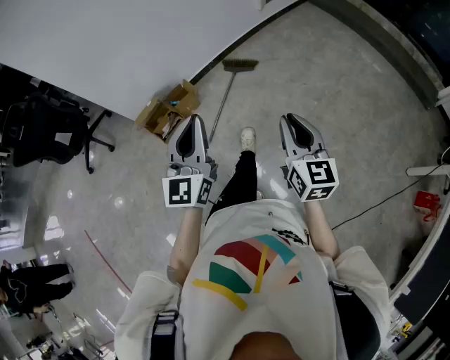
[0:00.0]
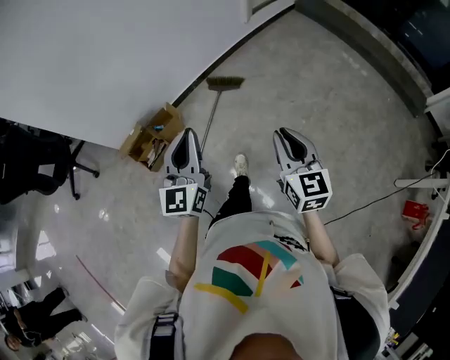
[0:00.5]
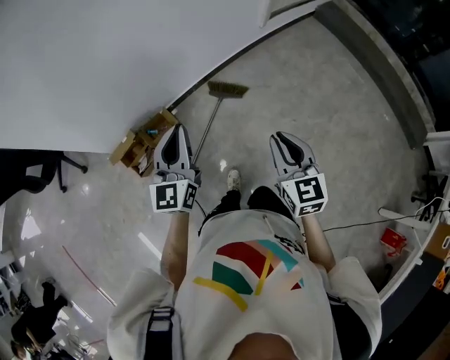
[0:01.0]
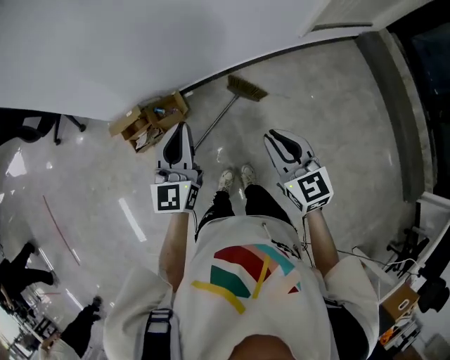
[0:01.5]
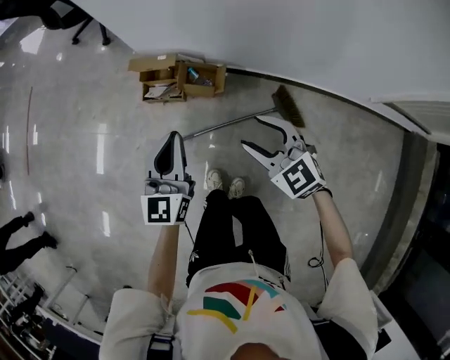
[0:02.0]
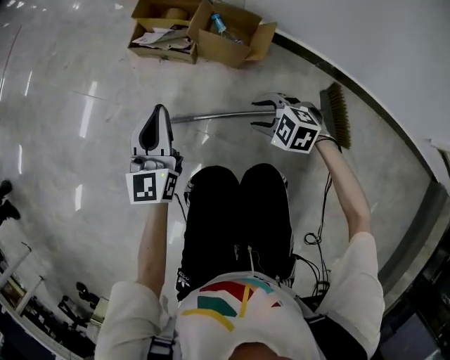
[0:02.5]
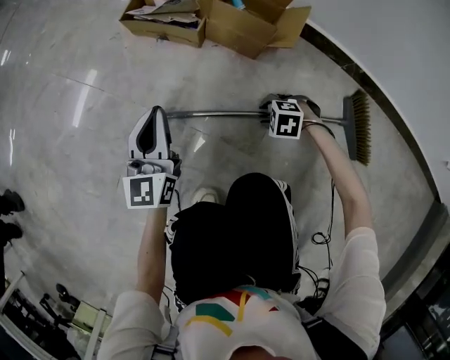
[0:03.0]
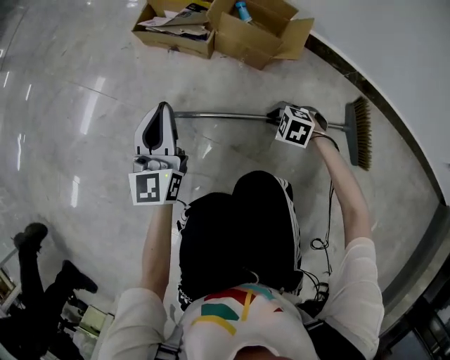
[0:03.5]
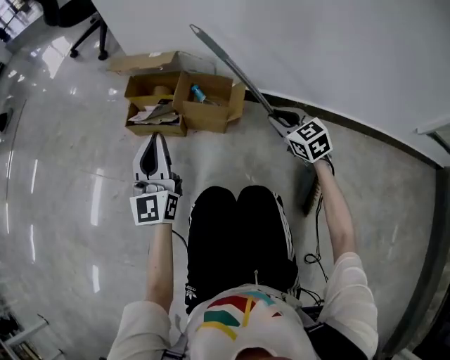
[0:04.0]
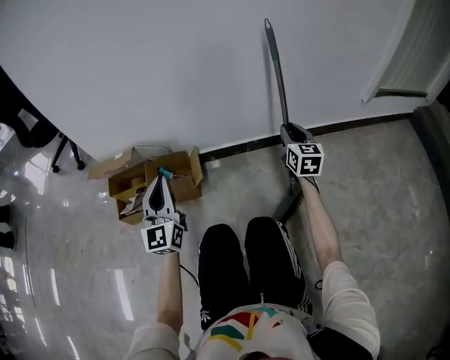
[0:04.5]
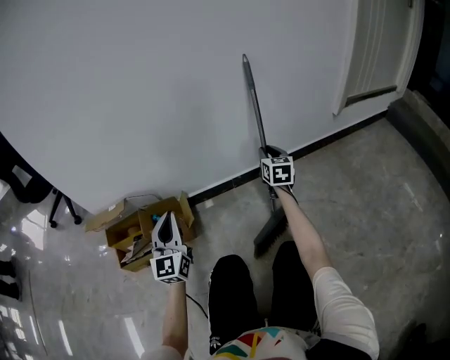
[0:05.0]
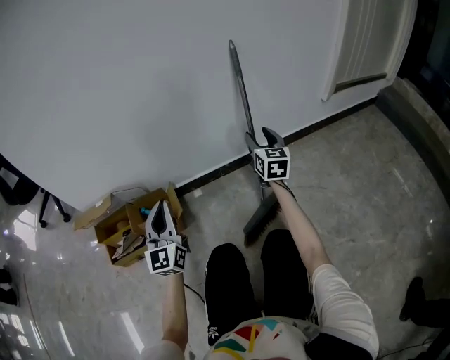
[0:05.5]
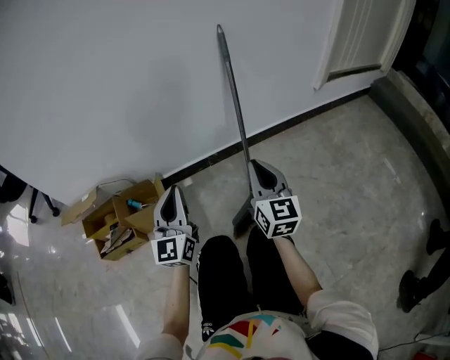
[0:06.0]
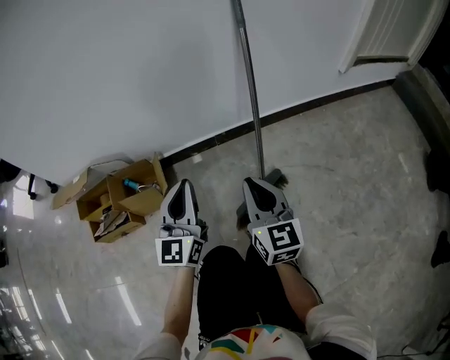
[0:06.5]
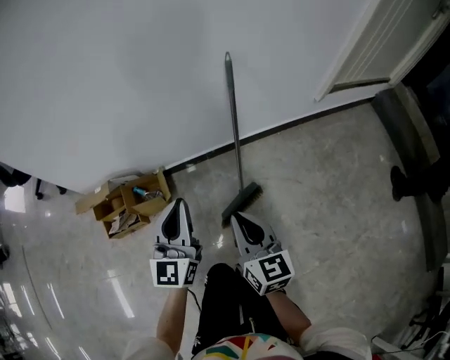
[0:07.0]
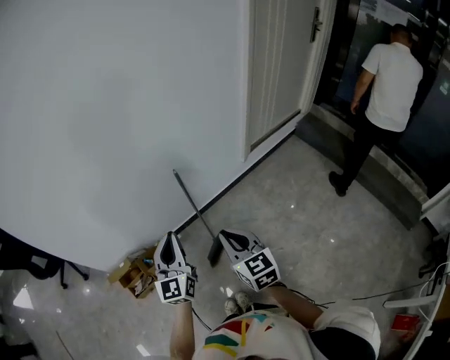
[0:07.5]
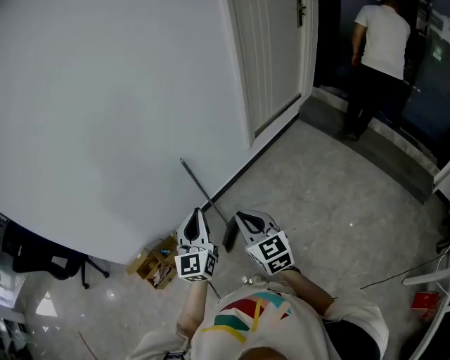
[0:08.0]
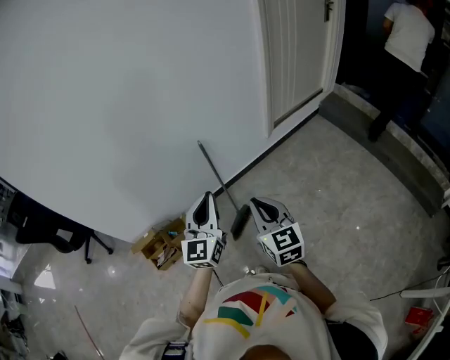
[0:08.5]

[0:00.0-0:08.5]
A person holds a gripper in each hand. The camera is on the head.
0:00.0 to 0:02.0: The pair of grippers is taken about 50 cm. The left gripper swivels some 50 degrees; the right gripper changes its angle by roughly 100 degrees, and opens up.
0:02.0 to 0:04.0: The grippers both shift downward by approximately 50 cm. The right gripper closes.
0:04.0 to 0:06.5: The right gripper shifts by roughly 25 cm, rotates approximately 60 degrees, and opens, then closes again; the left gripper ends up about 30 cm from where it was, and turns by about 40 degrees.
0:06.5 to 0:08.5: Both grippers travel together upward, about 70 cm.

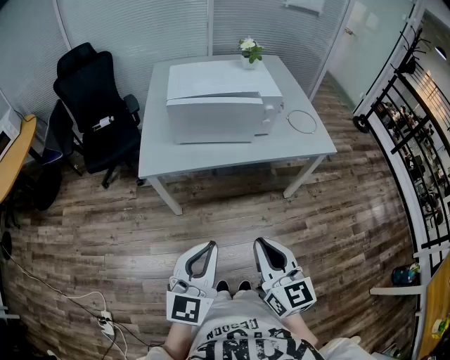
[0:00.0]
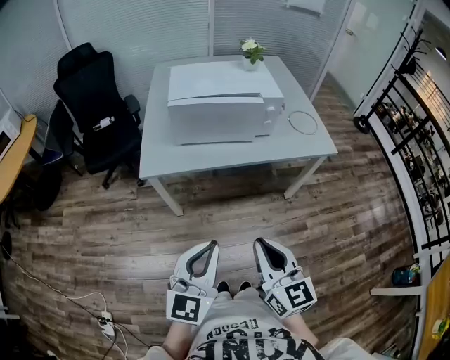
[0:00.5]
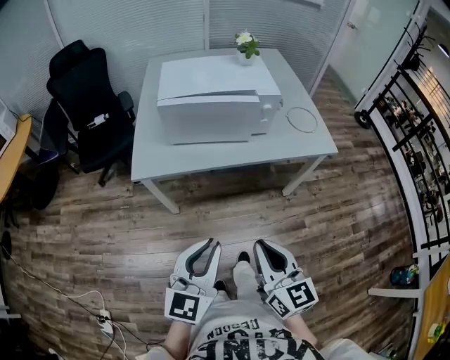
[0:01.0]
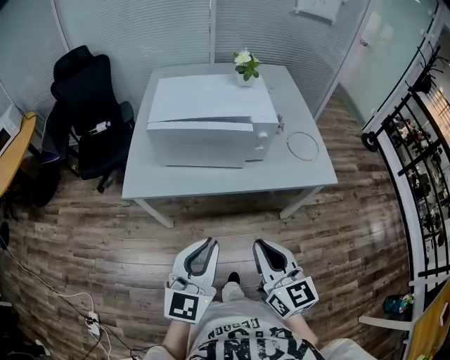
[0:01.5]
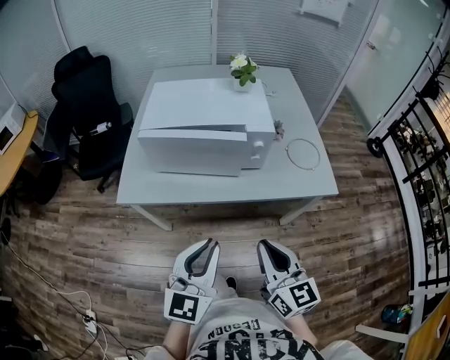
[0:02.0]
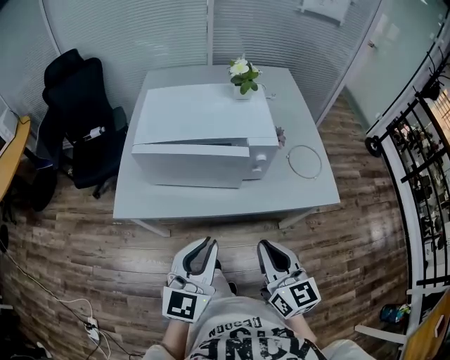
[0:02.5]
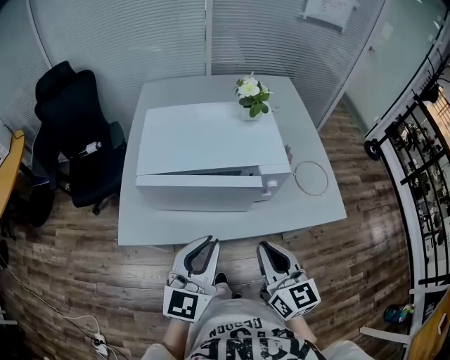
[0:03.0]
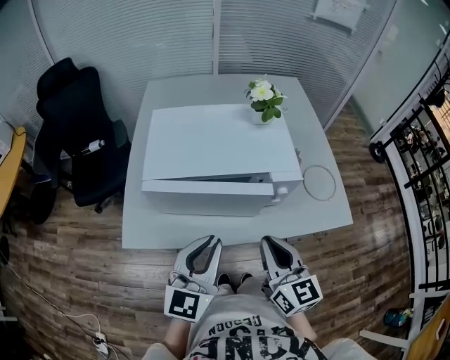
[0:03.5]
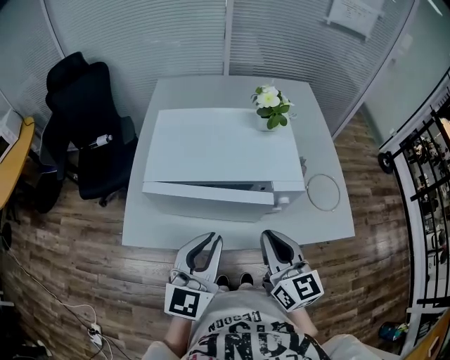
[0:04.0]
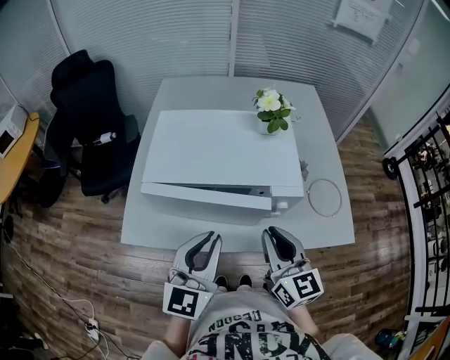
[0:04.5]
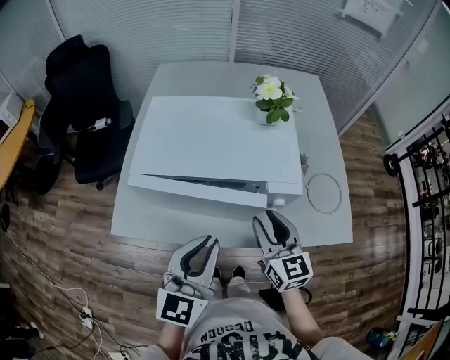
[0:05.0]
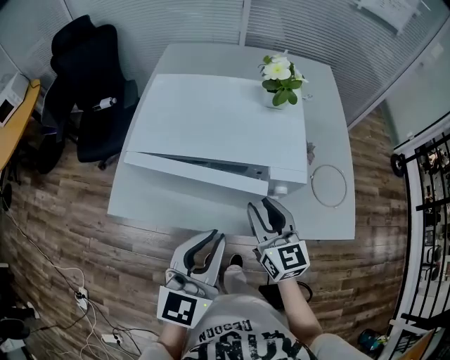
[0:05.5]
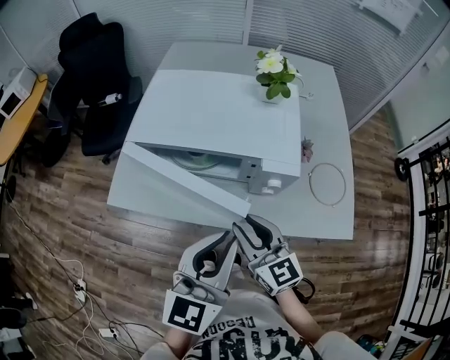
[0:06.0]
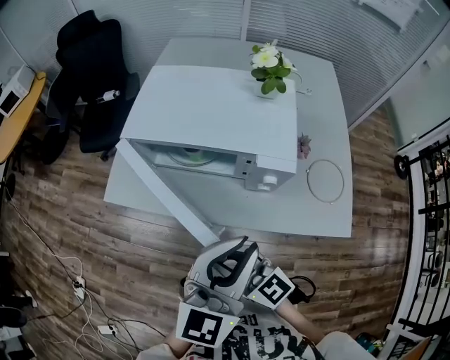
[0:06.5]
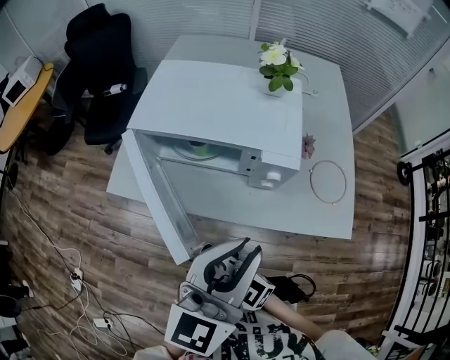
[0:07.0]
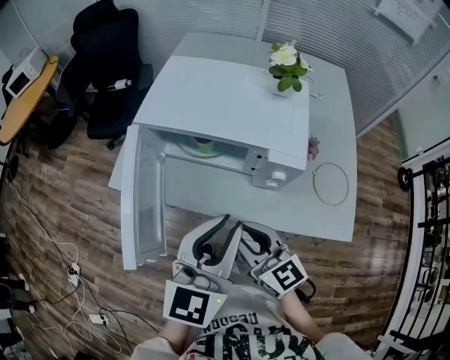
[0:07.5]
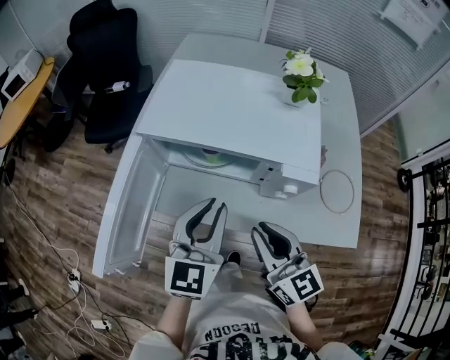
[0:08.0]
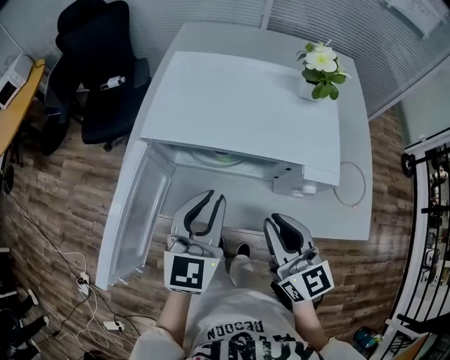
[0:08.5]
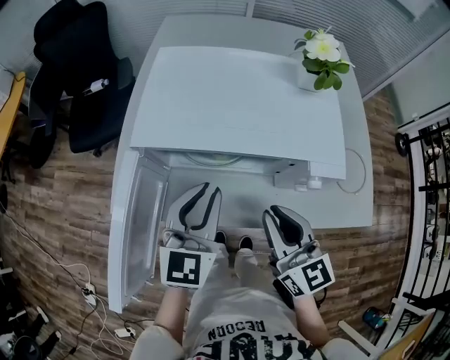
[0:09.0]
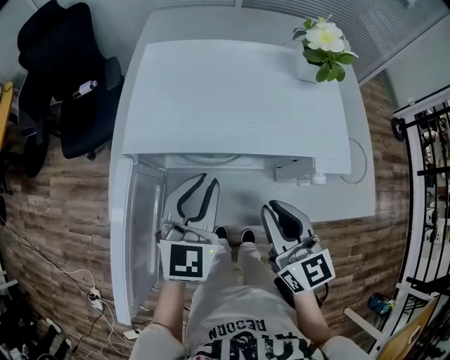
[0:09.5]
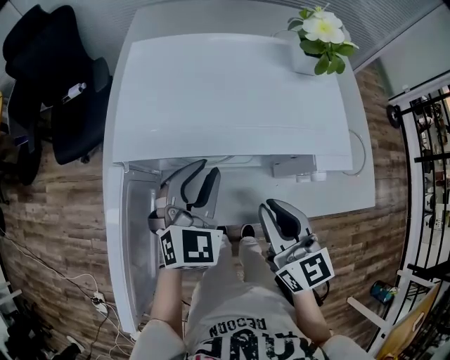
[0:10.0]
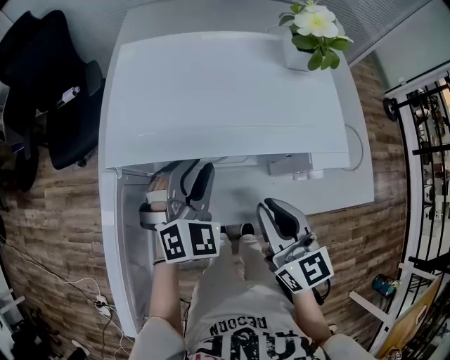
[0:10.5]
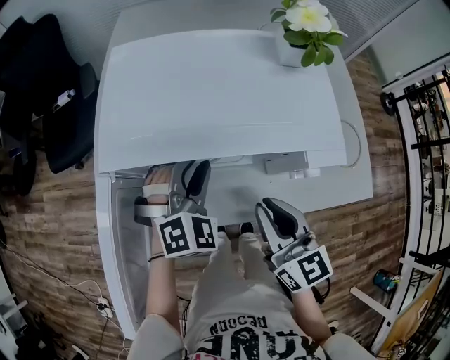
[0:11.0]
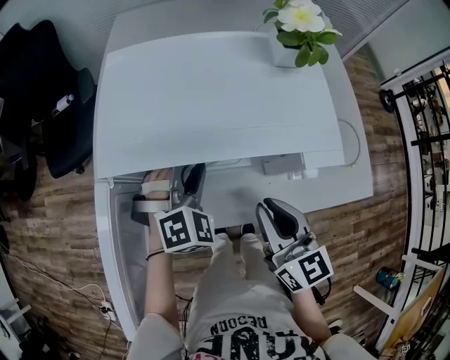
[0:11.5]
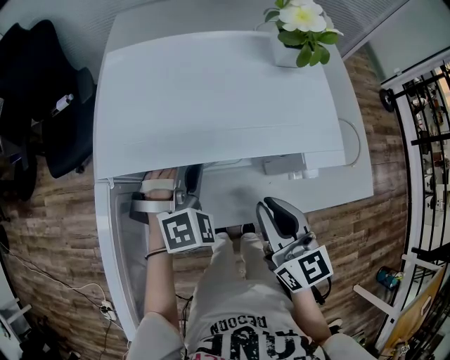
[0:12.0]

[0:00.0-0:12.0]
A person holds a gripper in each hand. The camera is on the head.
0:00.0 to 0:02.0: The grippers both shift forward and to the right by some 20 cm.
0:02.0 to 0:04.0: Both grippers travel together forward, approximately 20 cm.
0:04.0 to 0:06.0: The right gripper travels downward by roughly 5 cm, swivels roughly 20 degrees, and opens up, while the left gripper travels to the right by roughly 10 cm.
0:06.0 to 0:08.0: The left gripper is displaced forward by roughly 10 cm. Meanwhile the right gripper moves some 15 cm to the left and comes back.
0:08.0 to 0:10.0: The left gripper shifts about 15 cm forward and downward, and changes its angle by approximately 30 degrees. The right gripper moves forward, approximately 5 cm.
0:10.0 to 0:12.0: The left gripper moves approximately 5 cm, and swivels about 40 degrees.

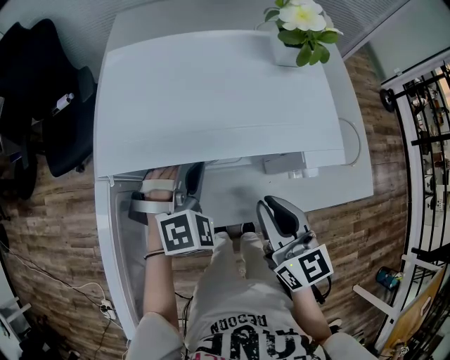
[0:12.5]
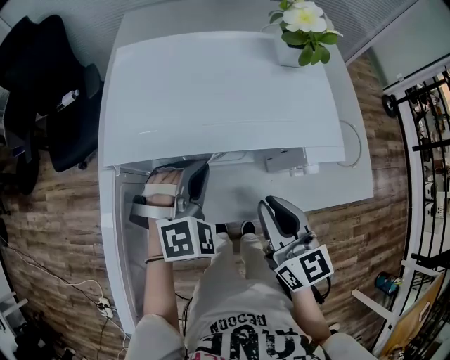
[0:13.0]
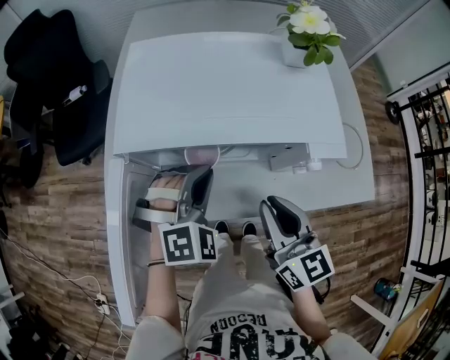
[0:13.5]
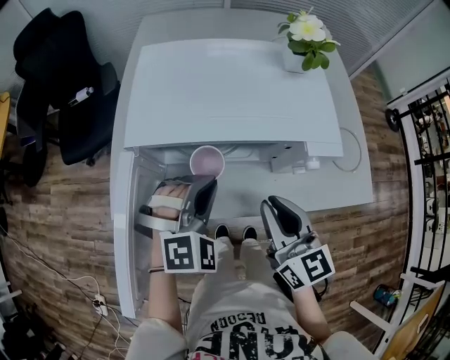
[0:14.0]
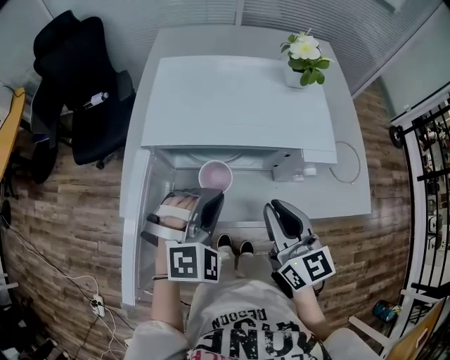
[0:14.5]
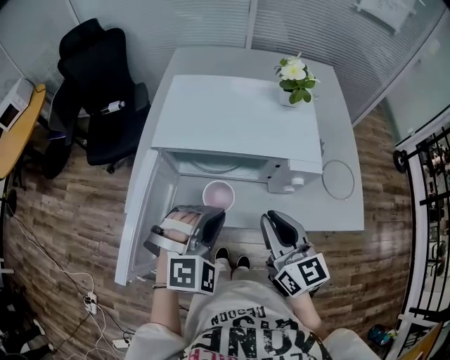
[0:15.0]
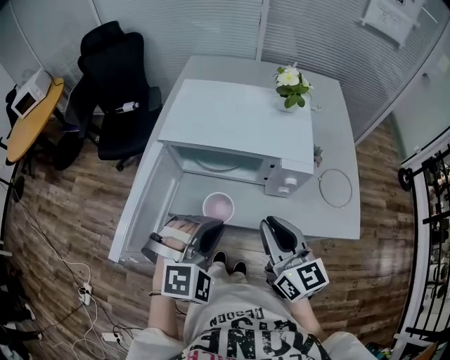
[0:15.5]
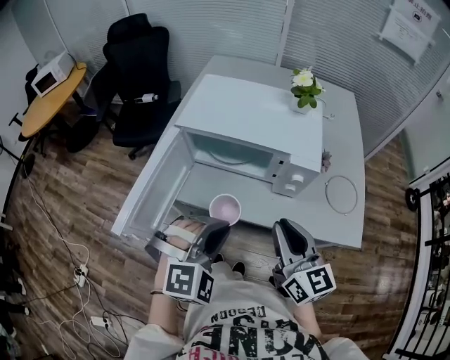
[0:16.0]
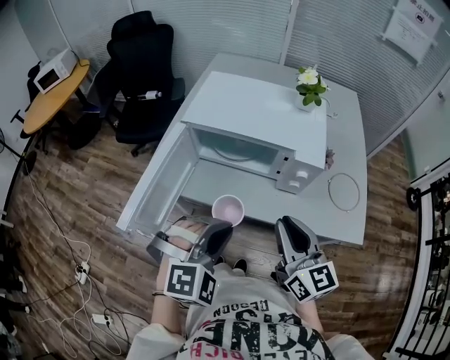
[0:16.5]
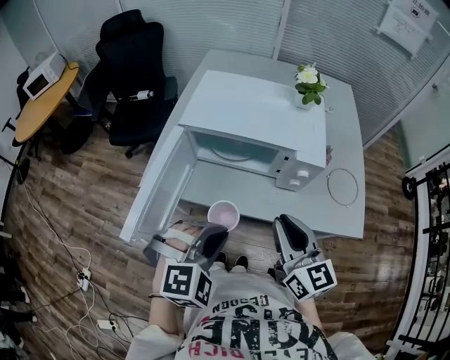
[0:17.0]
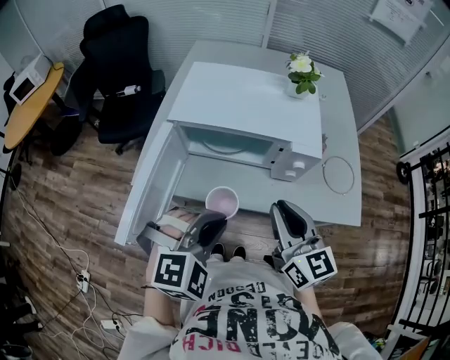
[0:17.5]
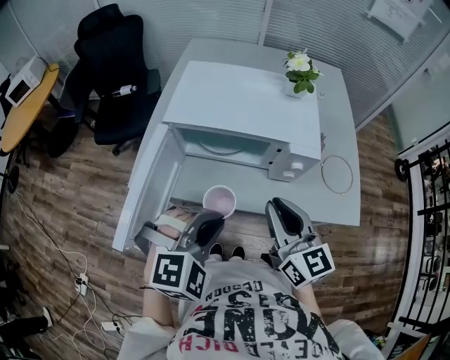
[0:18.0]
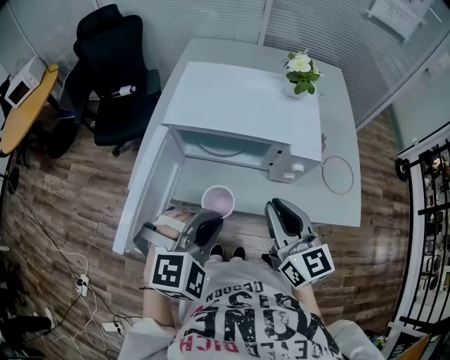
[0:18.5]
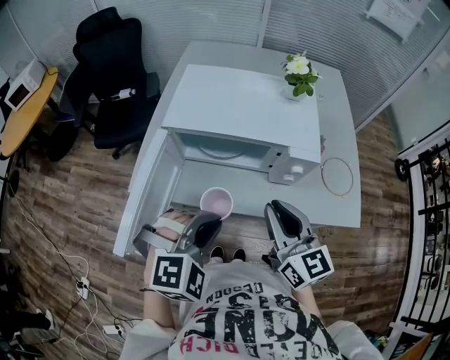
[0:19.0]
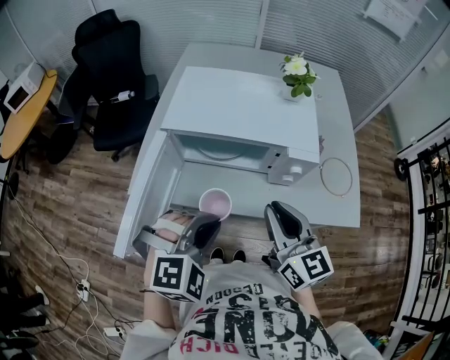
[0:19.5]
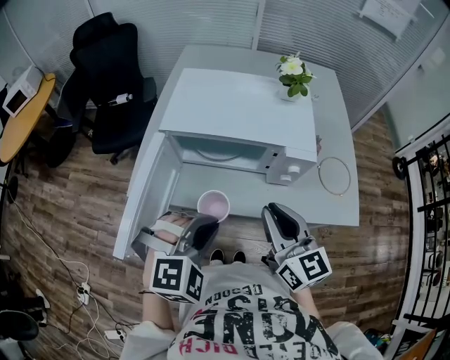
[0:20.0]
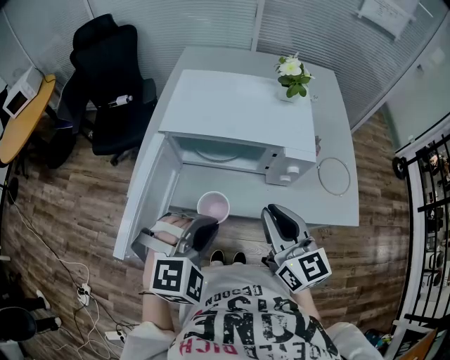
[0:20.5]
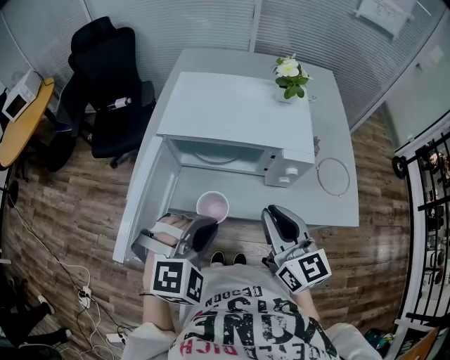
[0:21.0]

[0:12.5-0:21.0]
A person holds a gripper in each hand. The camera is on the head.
0:12.5 to 0:14.5: The left gripper moves backward and upward, about 15 cm. The right gripper shifts approximately 5 cm upward.
0:14.5 to 0:16.5: The left gripper goes roughly 15 cm backward. Meanwhile the right gripper heads backward, upward and to the right, covering about 10 cm.
0:16.5 to 0:19.0: The right gripper shifts by approximately 5 cm. Meanwhile the left gripper changes place by some 5 cm.
0:19.0 to 0:21.0: The two grippers keep their place.
